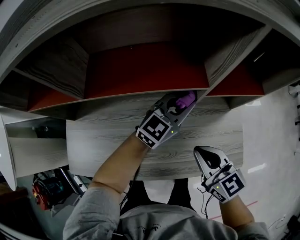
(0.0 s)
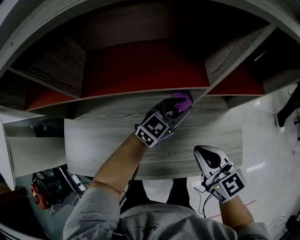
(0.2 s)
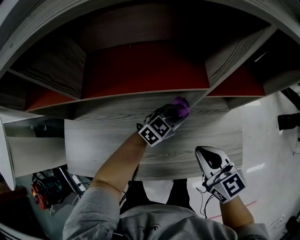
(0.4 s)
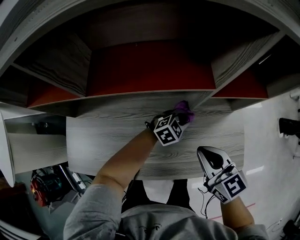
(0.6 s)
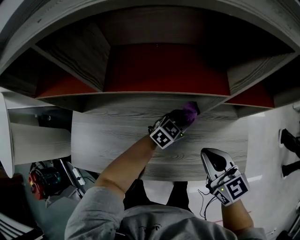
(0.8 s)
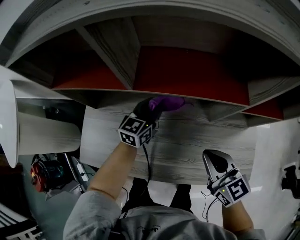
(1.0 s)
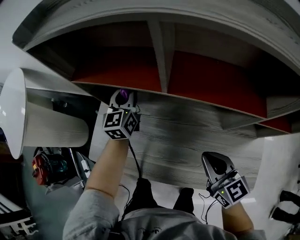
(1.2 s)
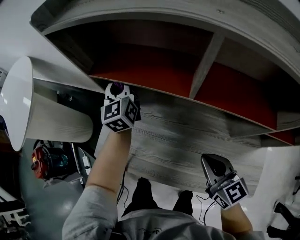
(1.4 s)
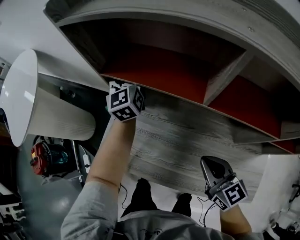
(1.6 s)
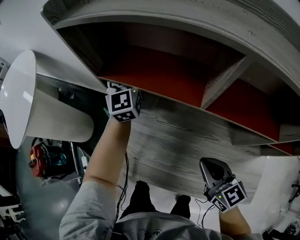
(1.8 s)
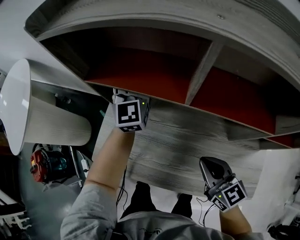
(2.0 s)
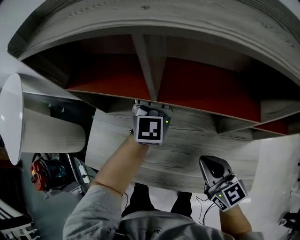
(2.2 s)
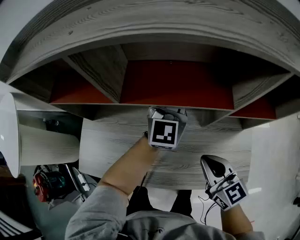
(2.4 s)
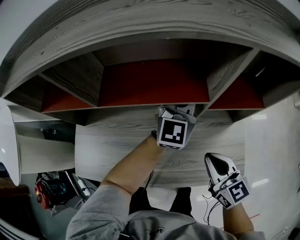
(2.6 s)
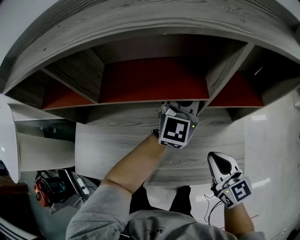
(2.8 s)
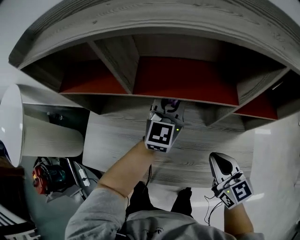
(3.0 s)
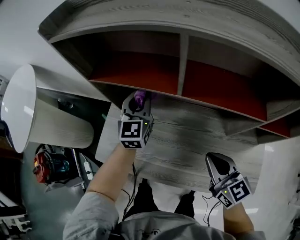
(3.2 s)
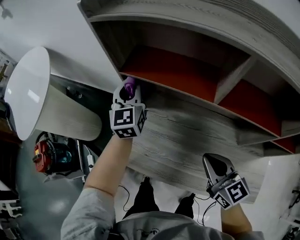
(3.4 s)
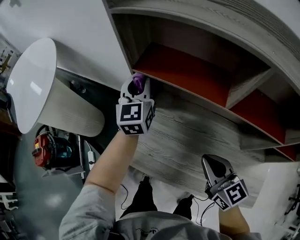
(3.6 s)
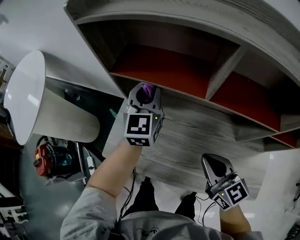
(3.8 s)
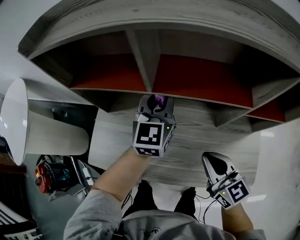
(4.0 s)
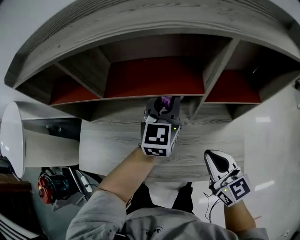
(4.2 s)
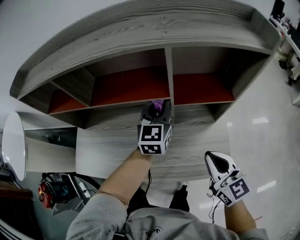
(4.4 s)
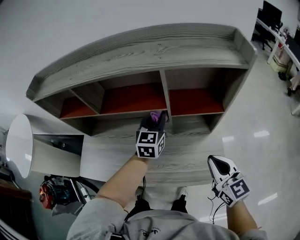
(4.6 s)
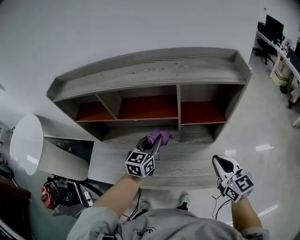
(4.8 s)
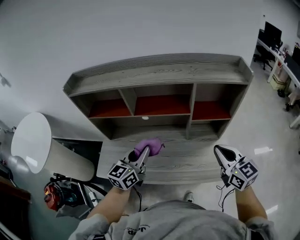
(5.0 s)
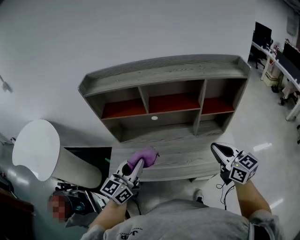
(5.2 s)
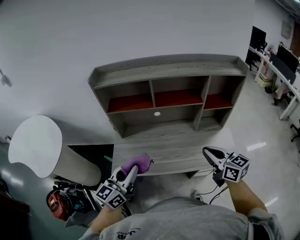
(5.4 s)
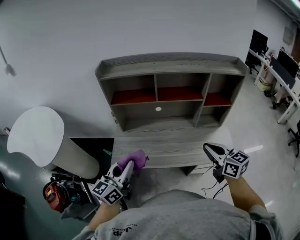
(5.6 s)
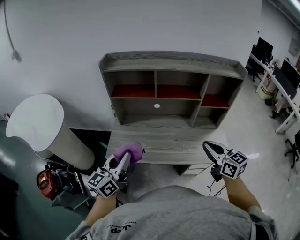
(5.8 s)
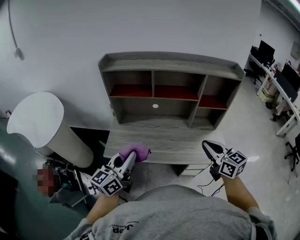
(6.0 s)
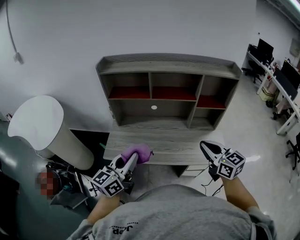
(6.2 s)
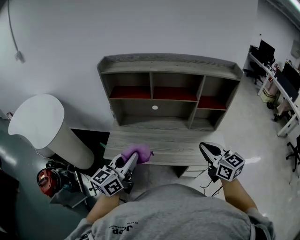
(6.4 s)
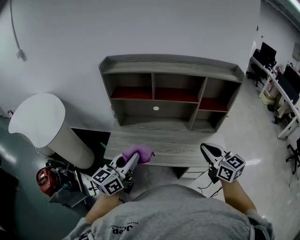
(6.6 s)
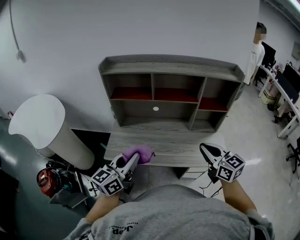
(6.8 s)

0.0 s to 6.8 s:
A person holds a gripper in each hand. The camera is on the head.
0.0 to 1.4 s: The right gripper ends up about 20 cm from where it was; the left gripper moves some 20 cm downward and comes back, and rotates roughly 80 degrees.
1.4 to 2.8 s: The right gripper changes place by some 25 cm, while the left gripper moves some 50 cm, and swivels approximately 50 degrees.
2.8 to 4.0 s: The left gripper changes its angle by roughly 20 degrees.
4.0 to 5.4 s: The left gripper goes approximately 40 cm backward and to the left, and turns by about 30 degrees. Meanwhile the right gripper goes approximately 25 cm backward and upward, and moves roughly 25 cm to the right and comes back.
5.4 to 6.8 s: The left gripper moves to the right and backward, about 10 cm. Meanwhile the right gripper ends up approximately 5 cm from where it was.

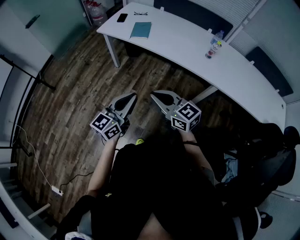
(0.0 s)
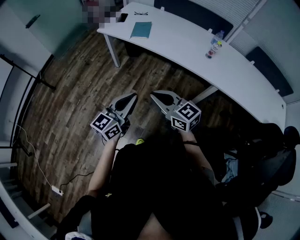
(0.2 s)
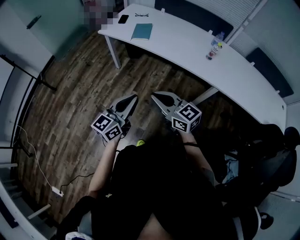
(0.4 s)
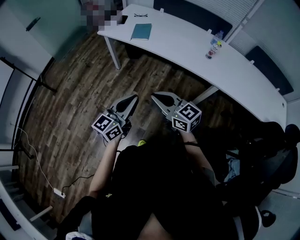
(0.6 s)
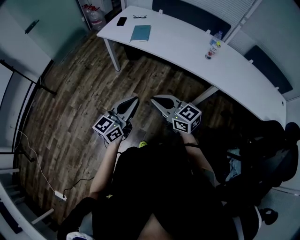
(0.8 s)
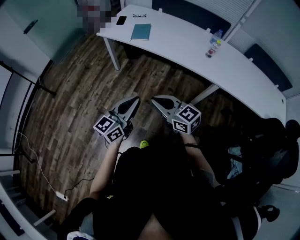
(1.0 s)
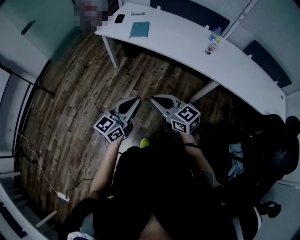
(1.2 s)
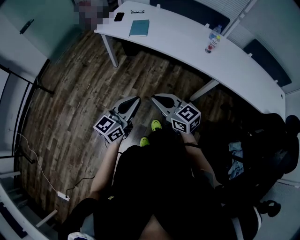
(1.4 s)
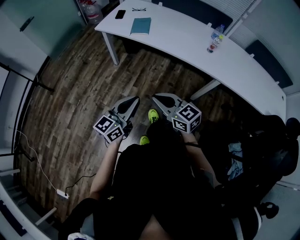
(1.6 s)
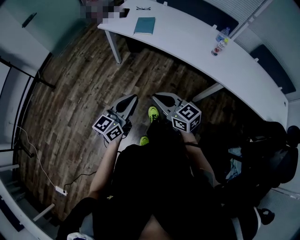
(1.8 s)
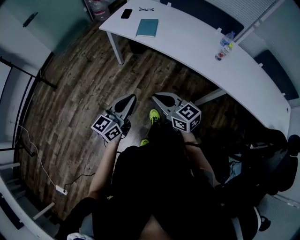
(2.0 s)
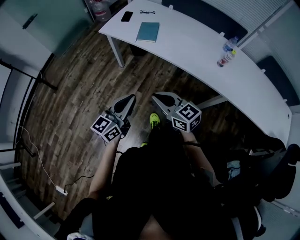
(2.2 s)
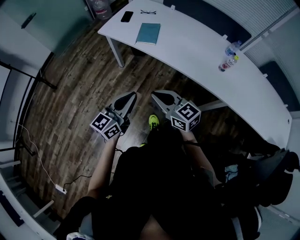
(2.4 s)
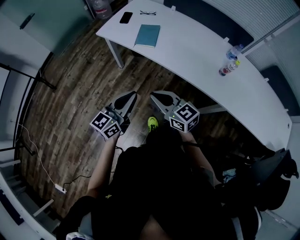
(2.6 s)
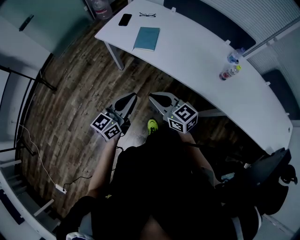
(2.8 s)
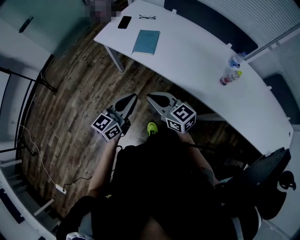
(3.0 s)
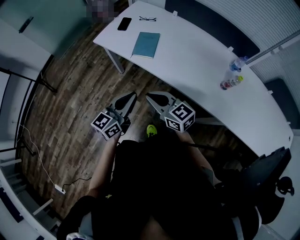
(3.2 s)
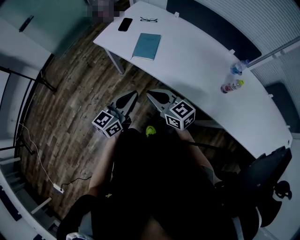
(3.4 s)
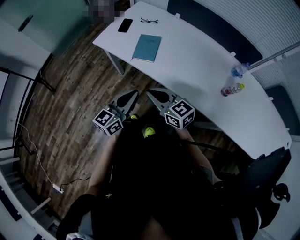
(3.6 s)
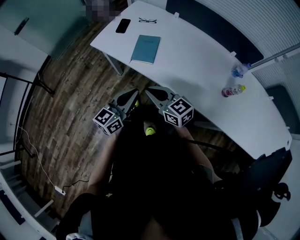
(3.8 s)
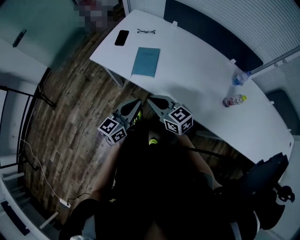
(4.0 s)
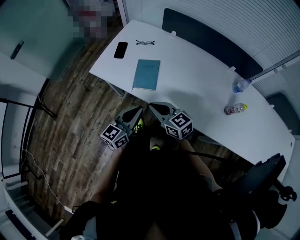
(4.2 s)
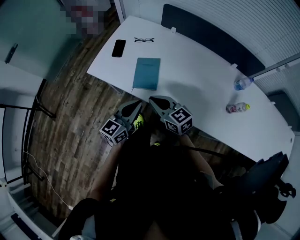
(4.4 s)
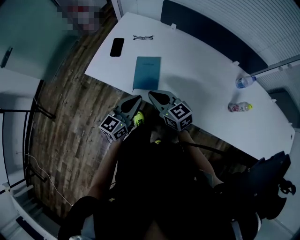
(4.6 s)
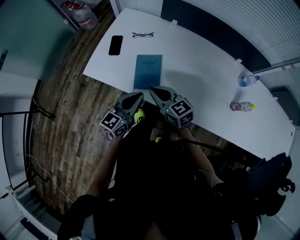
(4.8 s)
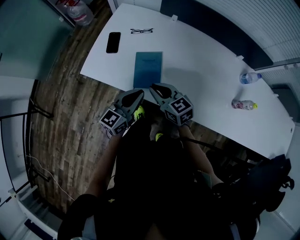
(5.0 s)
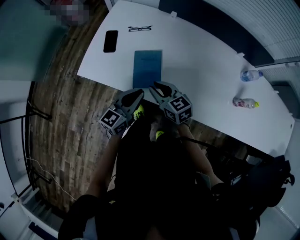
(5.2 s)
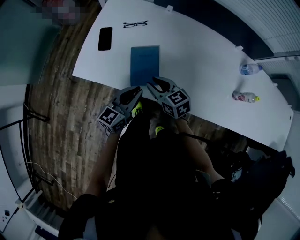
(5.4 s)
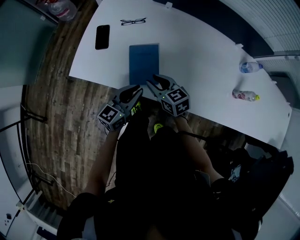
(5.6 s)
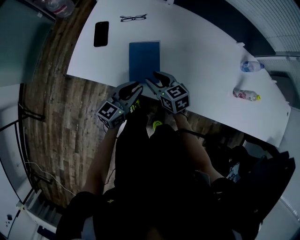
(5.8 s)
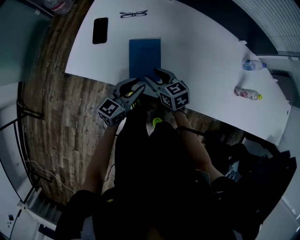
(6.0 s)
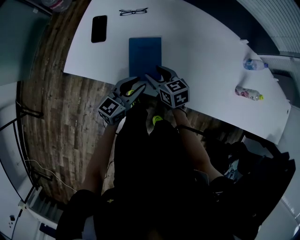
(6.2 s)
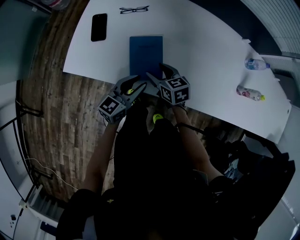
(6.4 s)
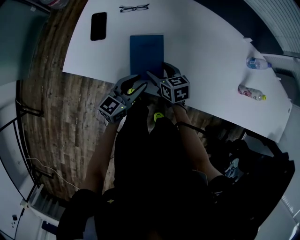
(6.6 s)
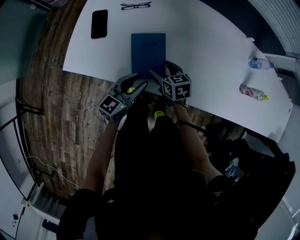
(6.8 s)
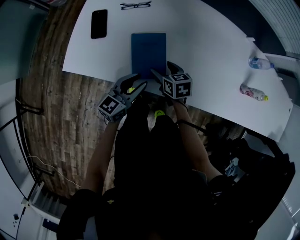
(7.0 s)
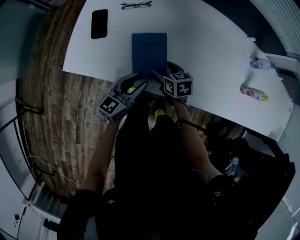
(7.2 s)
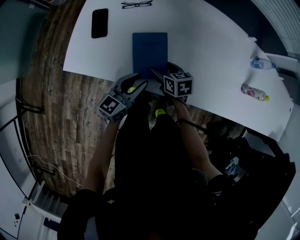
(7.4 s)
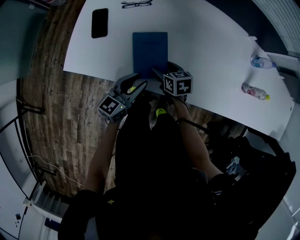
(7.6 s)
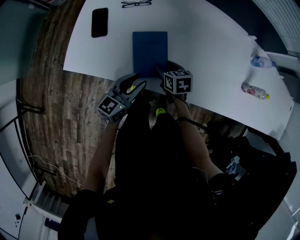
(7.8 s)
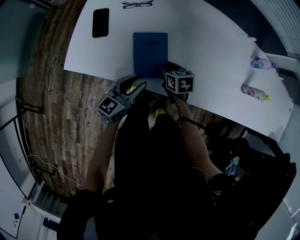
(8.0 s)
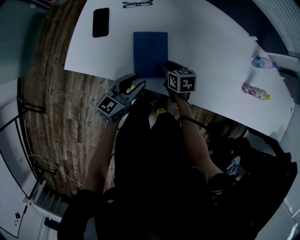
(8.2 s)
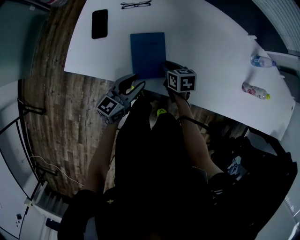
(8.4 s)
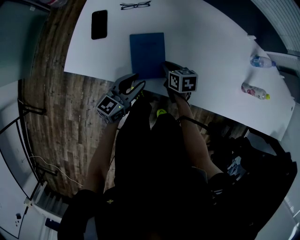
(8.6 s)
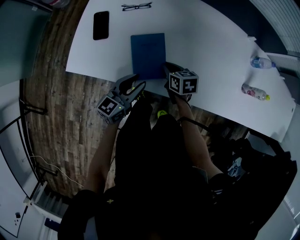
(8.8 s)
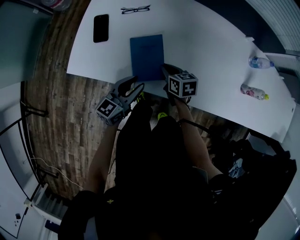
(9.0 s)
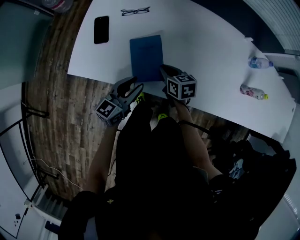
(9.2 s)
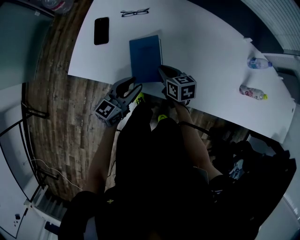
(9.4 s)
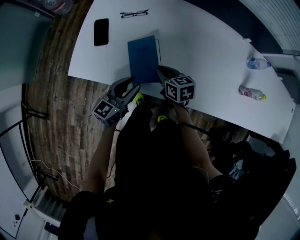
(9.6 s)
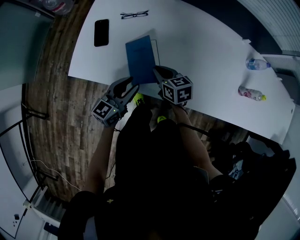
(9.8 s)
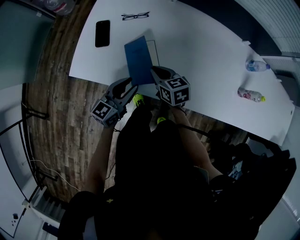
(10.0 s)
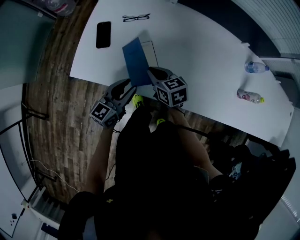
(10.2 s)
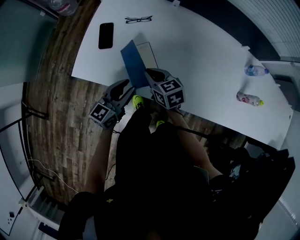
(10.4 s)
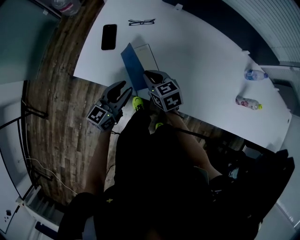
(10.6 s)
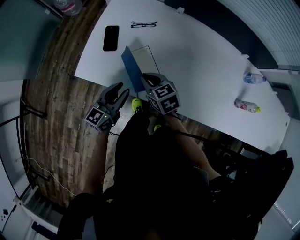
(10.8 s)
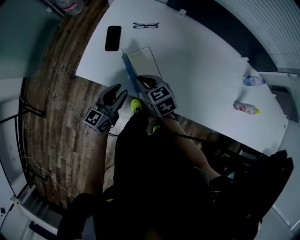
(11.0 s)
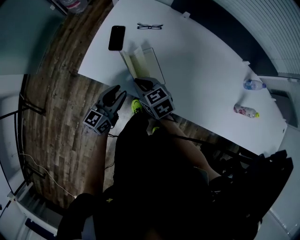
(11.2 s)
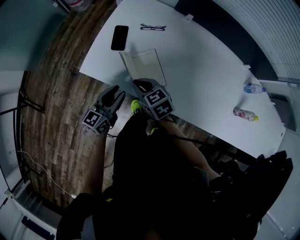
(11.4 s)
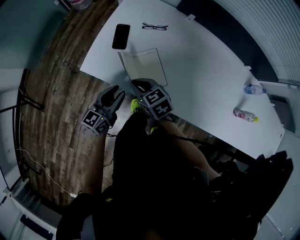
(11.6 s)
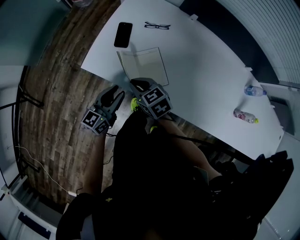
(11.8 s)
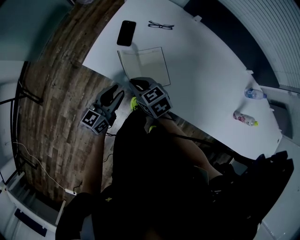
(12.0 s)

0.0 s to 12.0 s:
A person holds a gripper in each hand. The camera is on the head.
0.0 to 1.6 s: The grippers move only a little.
1.6 to 3.0 s: The grippers both shift forward by roughly 25 cm.
3.0 to 4.4 s: The two grippers go about 25 cm forward.
4.4 to 6.0 s: Both grippers move downward and forward, roughly 20 cm. The left gripper opens up, while the right gripper swivels roughly 30 degrees, and opens.
6.0 to 7.6 s: The right gripper shifts about 10 cm downward, turns by about 20 degrees, and opens.
7.6 to 9.0 s: The right gripper closes.
9.0 to 10.4 s: The right gripper travels to the left and upward by about 10 cm, and turns by about 20 degrees.
10.4 to 12.0 s: The grippers both shift to the left by approximately 10 cm. The right gripper changes its angle by about 20 degrees.

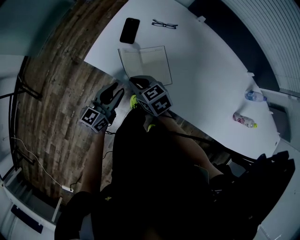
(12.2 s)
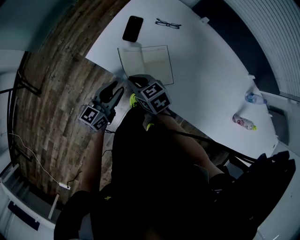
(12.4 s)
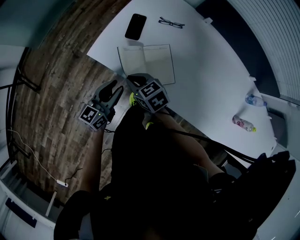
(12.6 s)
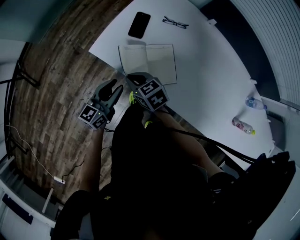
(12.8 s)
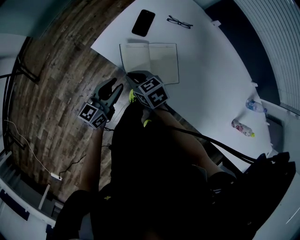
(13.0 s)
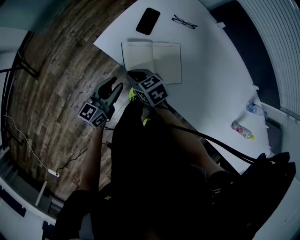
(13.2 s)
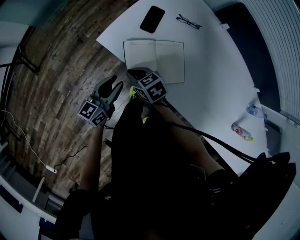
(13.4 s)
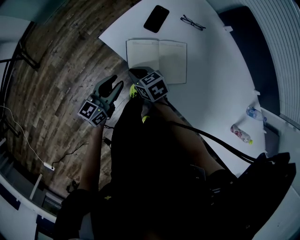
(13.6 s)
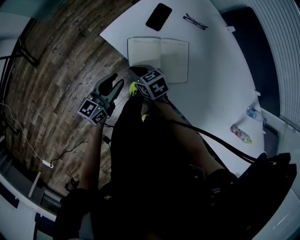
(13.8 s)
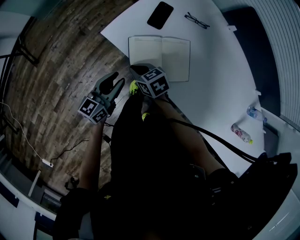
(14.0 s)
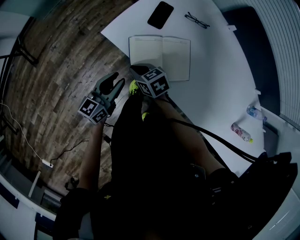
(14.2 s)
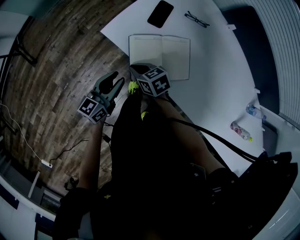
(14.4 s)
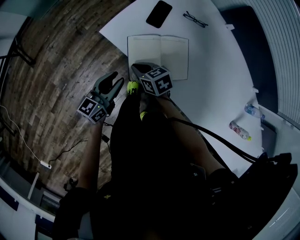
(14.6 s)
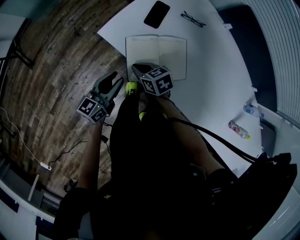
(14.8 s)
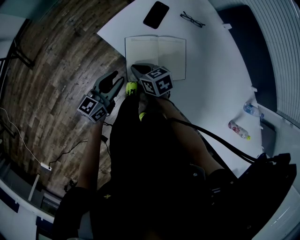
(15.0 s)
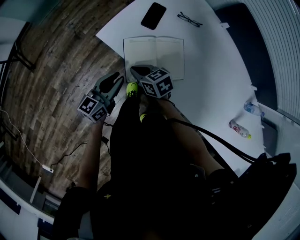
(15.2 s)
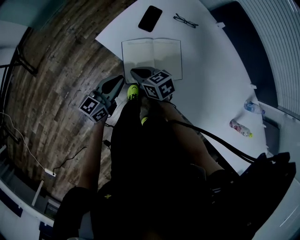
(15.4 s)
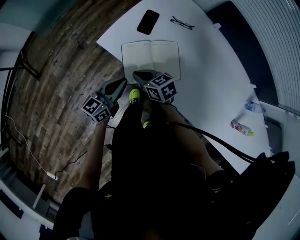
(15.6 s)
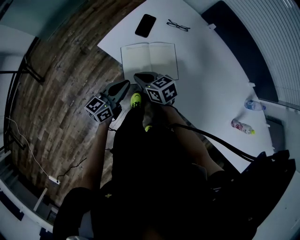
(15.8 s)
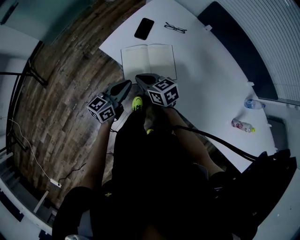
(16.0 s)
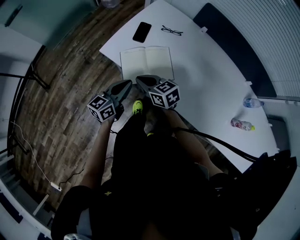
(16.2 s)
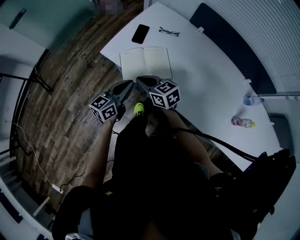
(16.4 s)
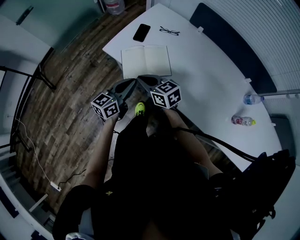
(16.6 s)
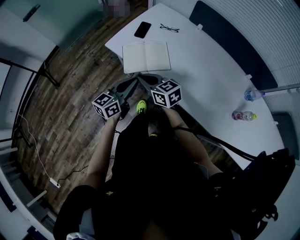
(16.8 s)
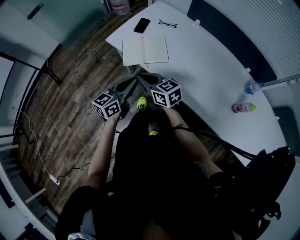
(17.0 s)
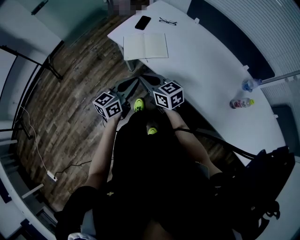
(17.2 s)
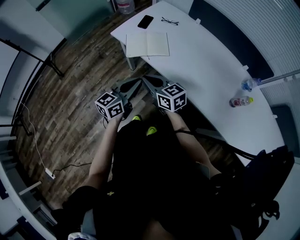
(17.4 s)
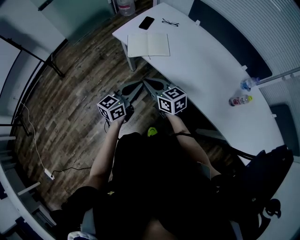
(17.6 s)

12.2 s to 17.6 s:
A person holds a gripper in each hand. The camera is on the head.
12.2 to 13.6 s: The right gripper is displaced downward and to the left by roughly 10 cm, while the left gripper heads to the left, covering roughly 5 cm.
13.6 to 15.0 s: The grippers make only small movements.
15.0 to 16.2 s: The right gripper goes some 15 cm upward and backward, while the left gripper travels upward, to the right and backward by roughly 10 cm, and closes its fingers.
16.2 to 17.6 s: Both grippers move backward, approximately 25 cm.
